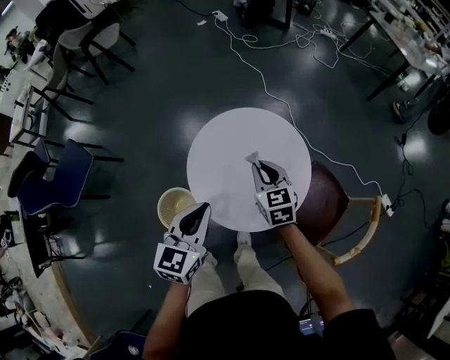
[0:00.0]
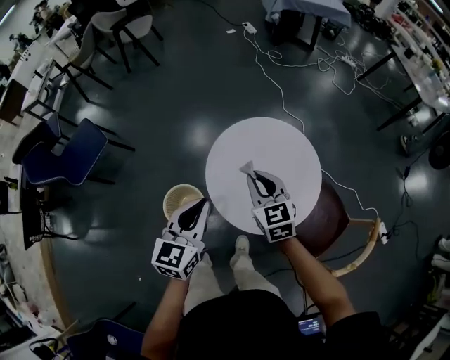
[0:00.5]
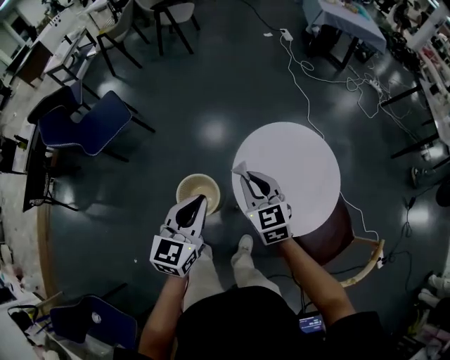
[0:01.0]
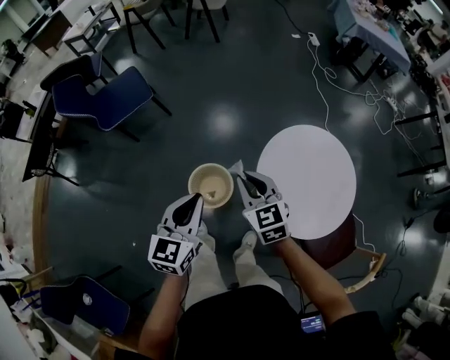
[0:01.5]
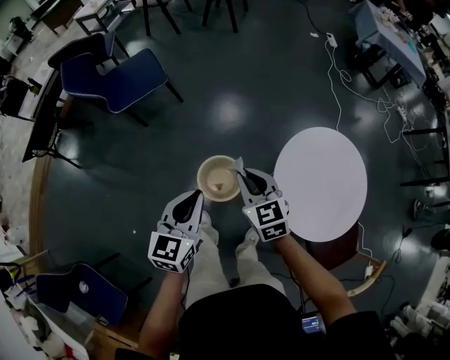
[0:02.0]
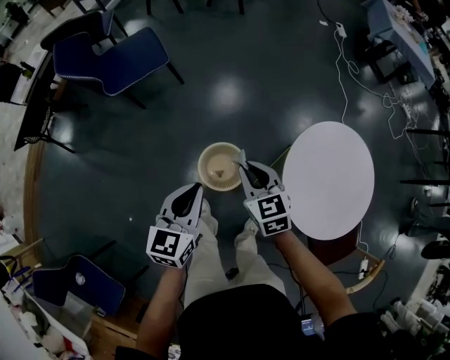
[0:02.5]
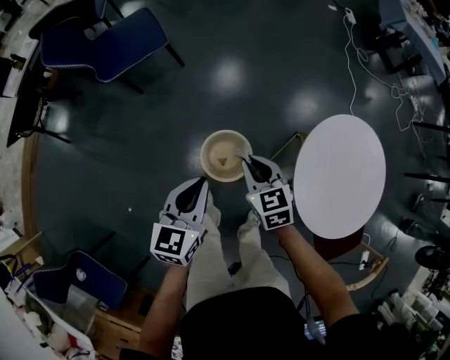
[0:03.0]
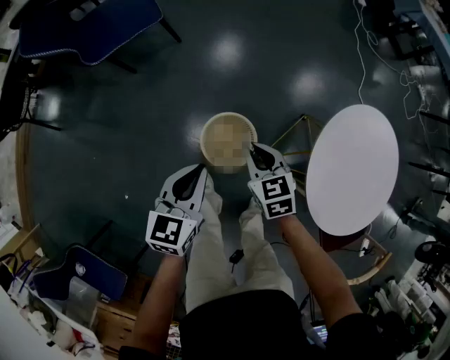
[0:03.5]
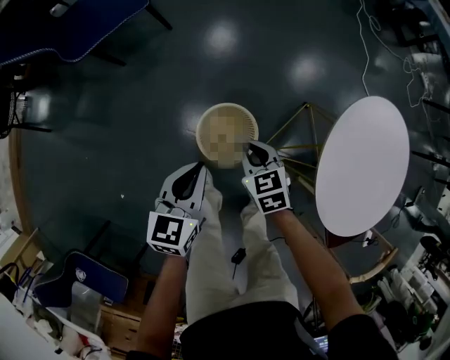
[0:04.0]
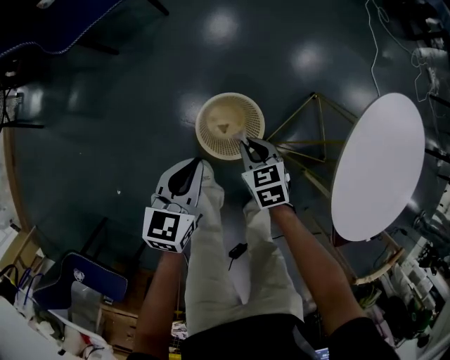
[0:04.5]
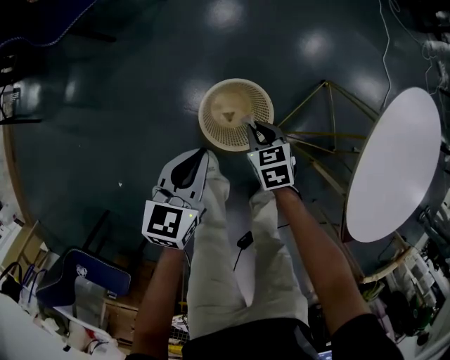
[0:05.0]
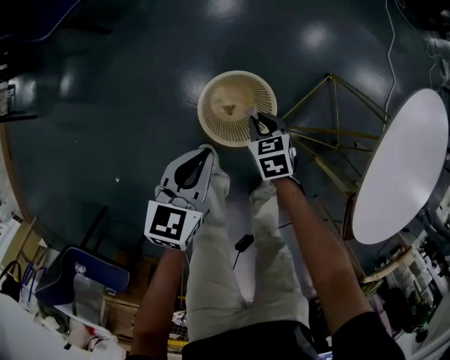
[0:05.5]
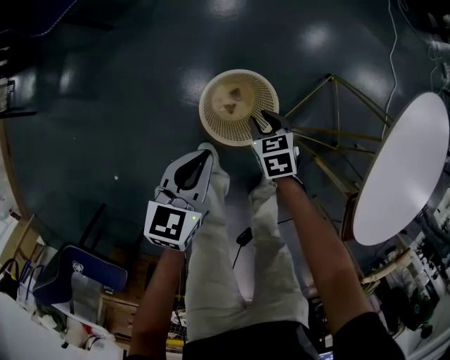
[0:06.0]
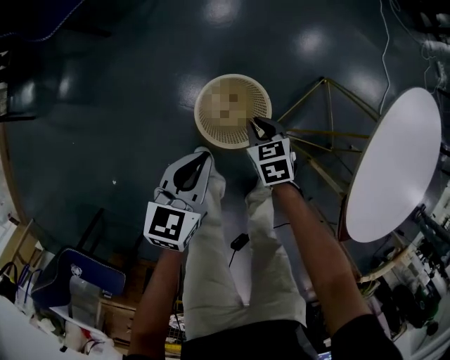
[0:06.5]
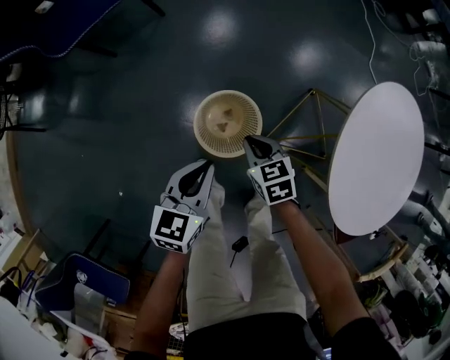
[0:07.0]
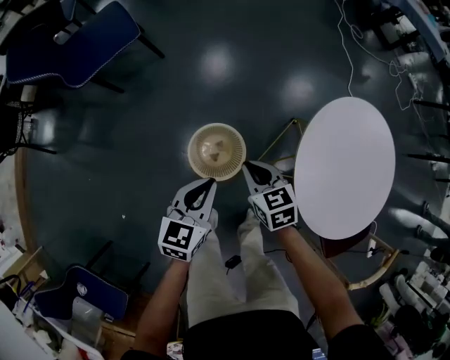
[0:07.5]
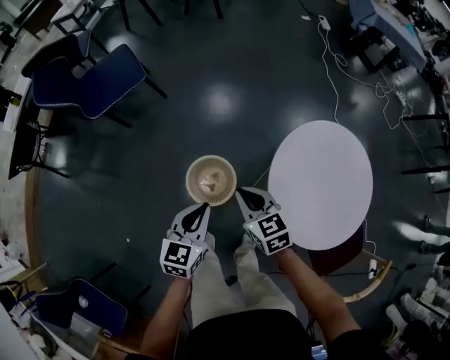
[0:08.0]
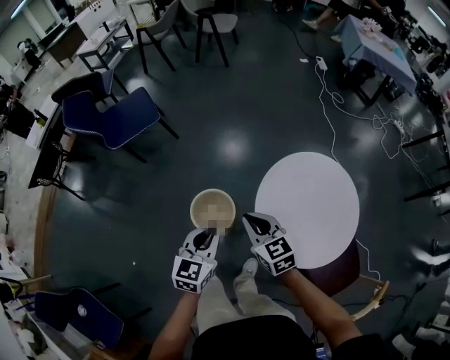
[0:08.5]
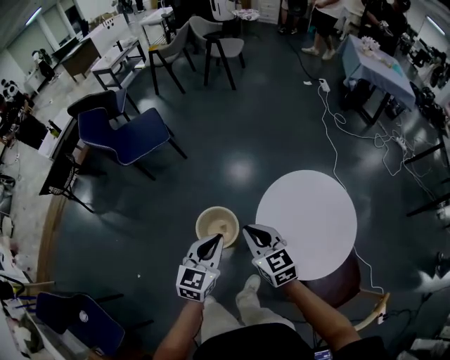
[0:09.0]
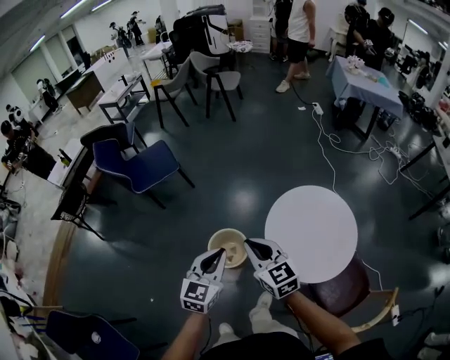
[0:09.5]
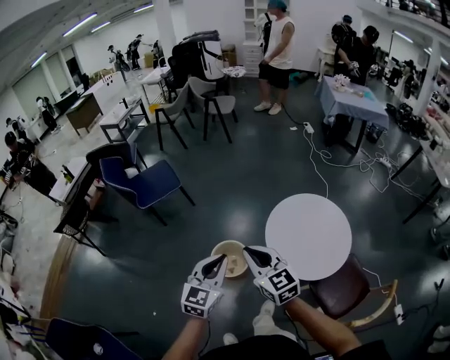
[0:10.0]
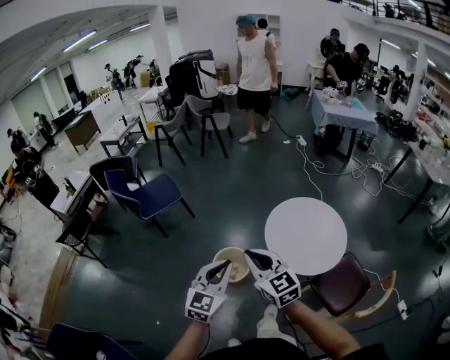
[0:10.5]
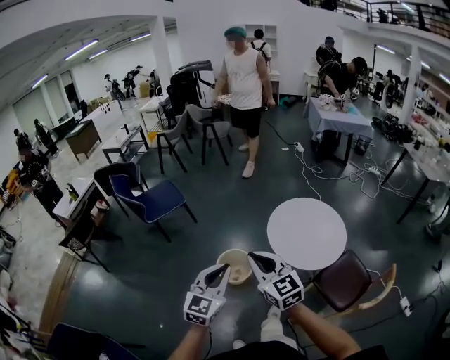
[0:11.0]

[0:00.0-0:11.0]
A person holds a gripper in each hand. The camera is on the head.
0:00.0 to 0:02.0: The left gripper changes place by approximately 40 cm, and swivels approximately 30 degrees; the right gripper ends up some 50 cm from where it was, and rotates roughly 40 degrees.
0:02.0 to 0:03.5: The left gripper shifts roughly 20 cm downward and forward. Meanwhile the right gripper travels downward by about 25 cm.
0:03.5 to 0:05.5: Both grippers travel together downward, approximately 30 cm.
0:05.5 to 0:07.5: The right gripper moves upward, some 30 cm. The left gripper goes some 20 cm upward and to the right.
0:07.5 to 0:09.0: The left gripper goes roughly 30 cm upward, to the right and backward; the right gripper travels upward by approximately 30 cm, and turns by roughly 20 degrees.
0:09.0 to 0:11.0: The grippers both shift backward, upward and to the left by roughly 40 cm. The left gripper changes its angle by about 20 degrees. The right gripper swivels roughly 20 degrees.

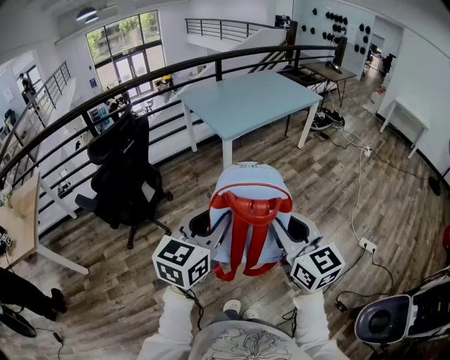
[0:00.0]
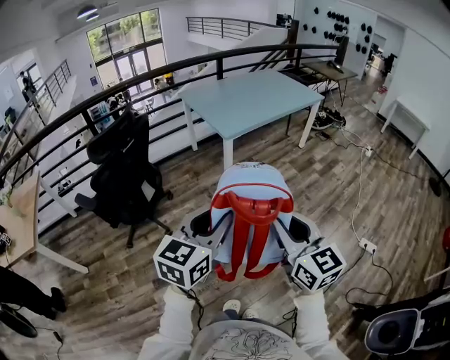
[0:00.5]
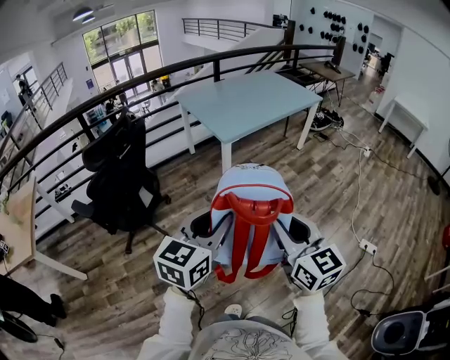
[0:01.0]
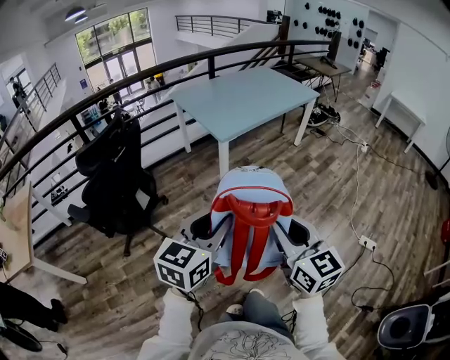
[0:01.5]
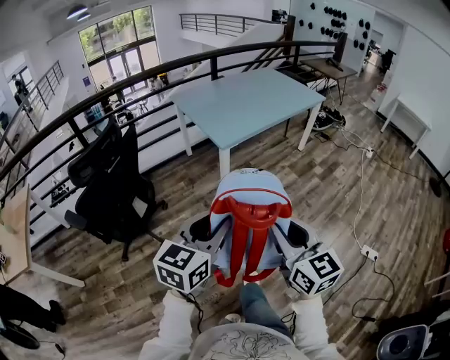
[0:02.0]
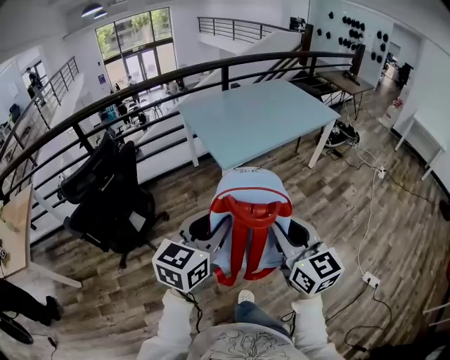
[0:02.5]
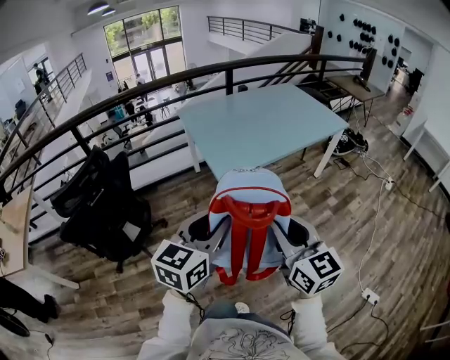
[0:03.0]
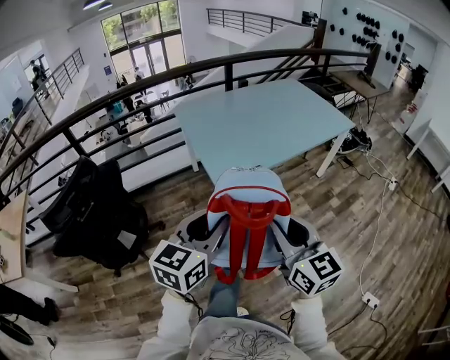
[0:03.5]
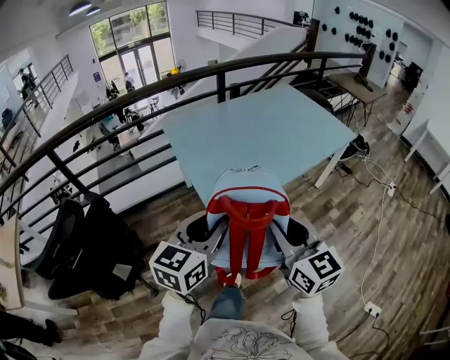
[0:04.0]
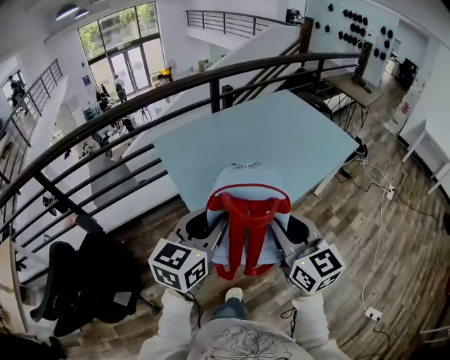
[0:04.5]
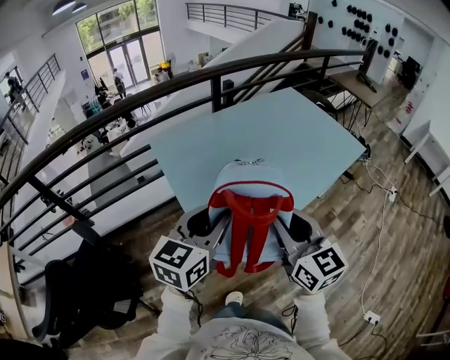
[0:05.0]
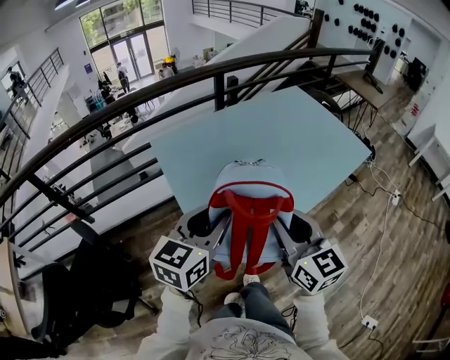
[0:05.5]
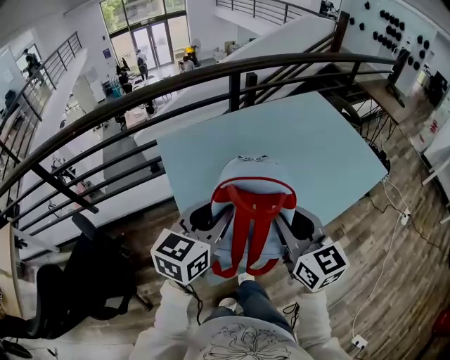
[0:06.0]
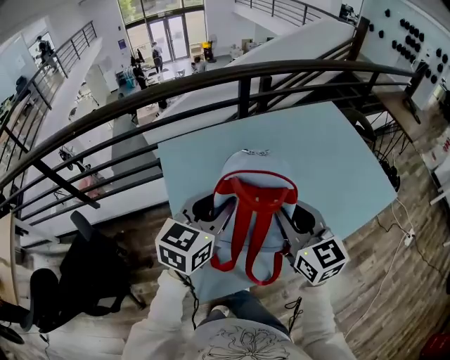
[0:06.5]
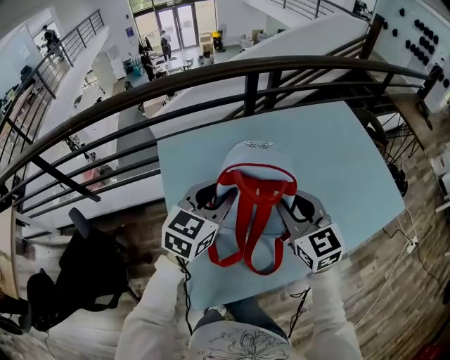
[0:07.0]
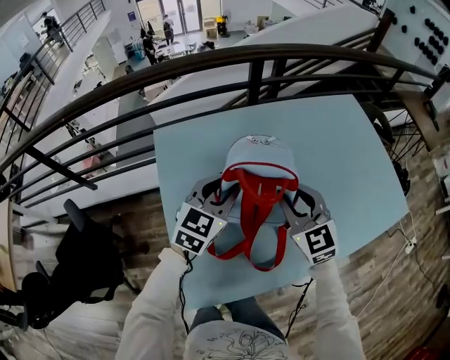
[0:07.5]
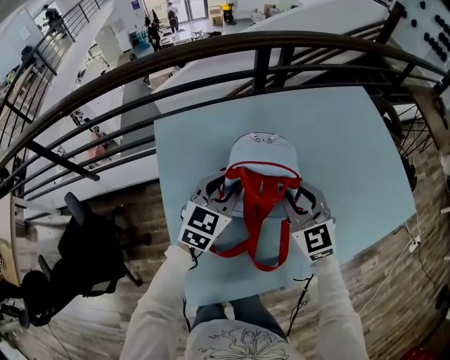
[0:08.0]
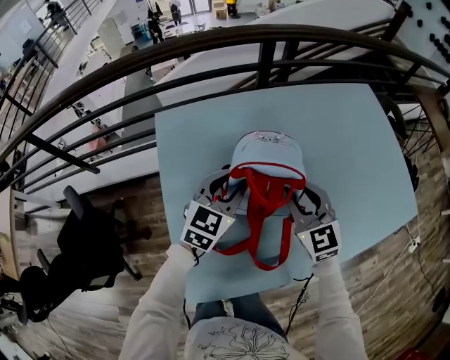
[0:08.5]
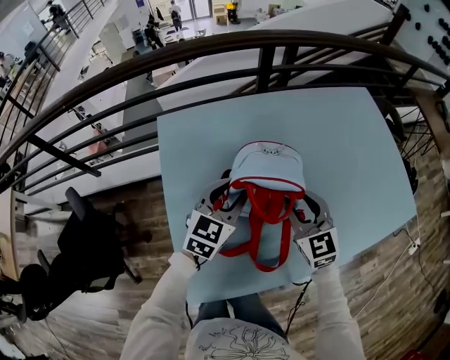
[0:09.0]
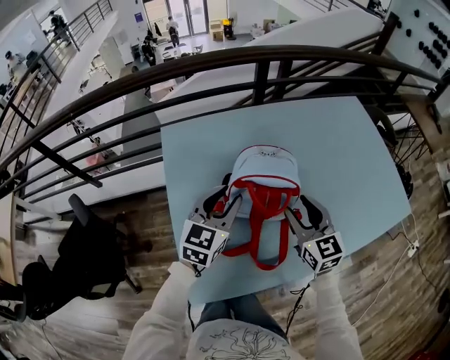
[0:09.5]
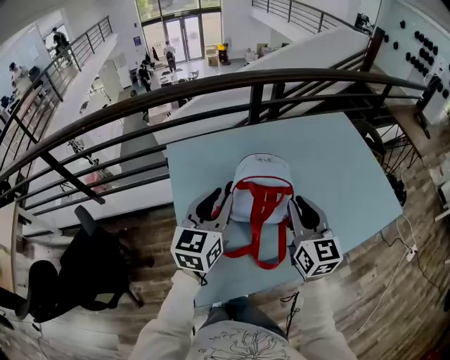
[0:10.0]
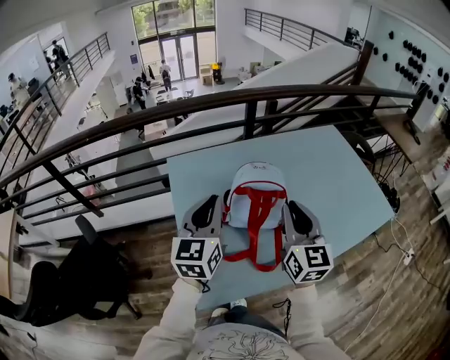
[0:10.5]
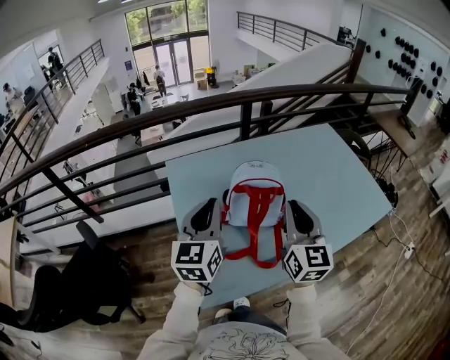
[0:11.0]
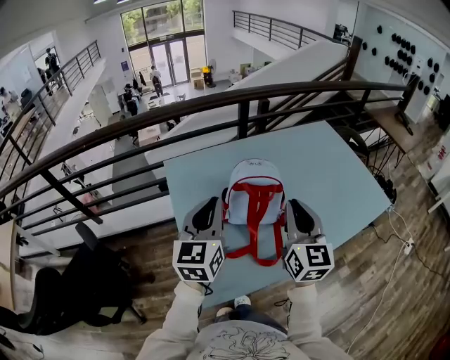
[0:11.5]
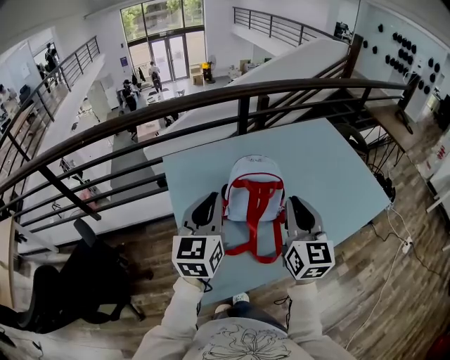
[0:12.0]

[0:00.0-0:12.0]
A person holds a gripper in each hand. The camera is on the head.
0:00.0 to 0:02.0: The grippers both shift forward by roughly 15 cm.
0:02.0 to 0:04.0: The two grippers travel together, forward, roughly 50 cm.
0:04.0 to 0:06.0: Both grippers move forward, some 40 cm.
0:06.0 to 0:08.0: The two grippers go some 30 cm forward and downward. The right gripper turns by approximately 30 degrees.
0:08.0 to 0:10.0: Both grippers travel together upward and backward, approximately 15 cm. The right gripper swivels about 30 degrees, and opens and closes again. The left gripper swivels approximately 20 degrees.
0:10.0 to 0:12.0: The grippers both shift backward and upward by roughly 10 cm. The left gripper closes its fingers.

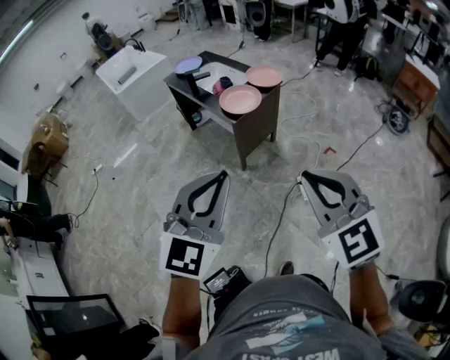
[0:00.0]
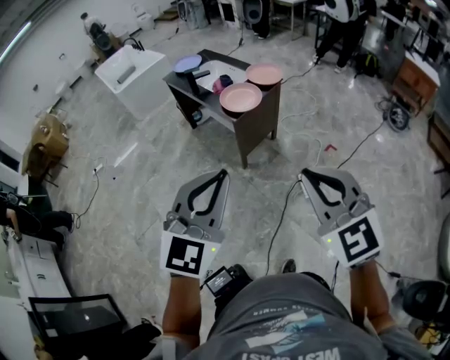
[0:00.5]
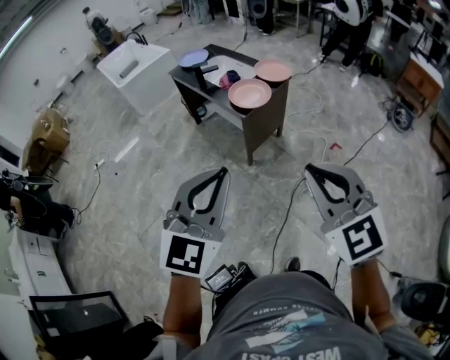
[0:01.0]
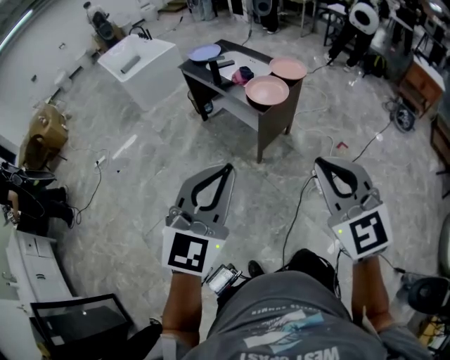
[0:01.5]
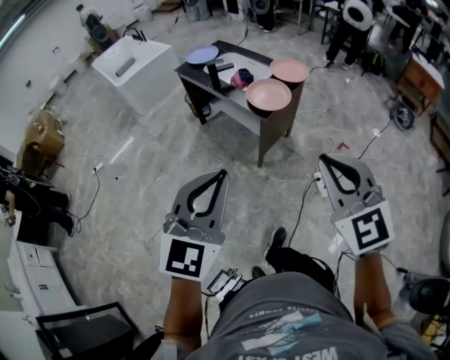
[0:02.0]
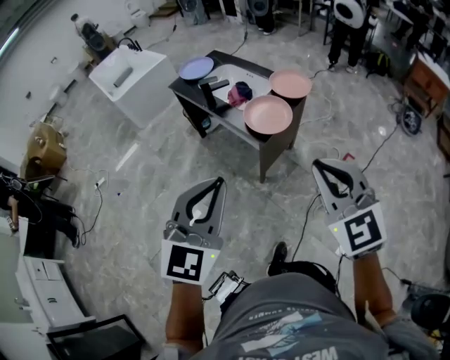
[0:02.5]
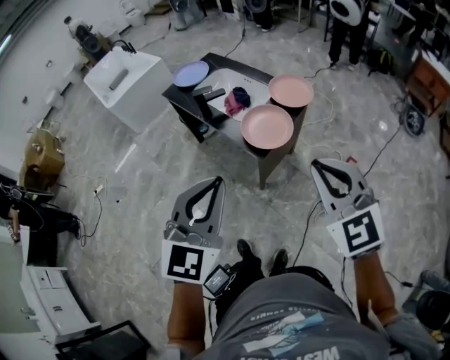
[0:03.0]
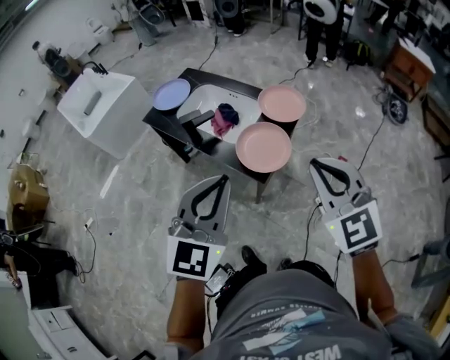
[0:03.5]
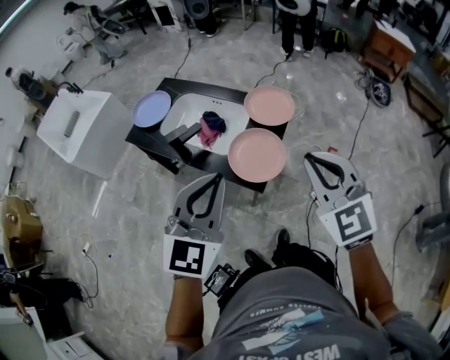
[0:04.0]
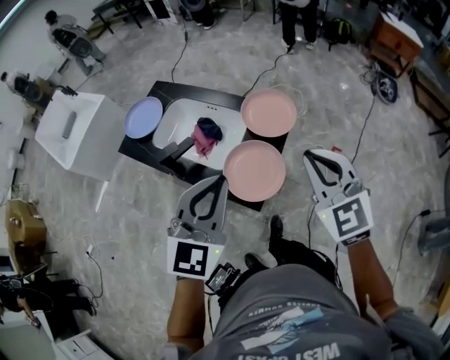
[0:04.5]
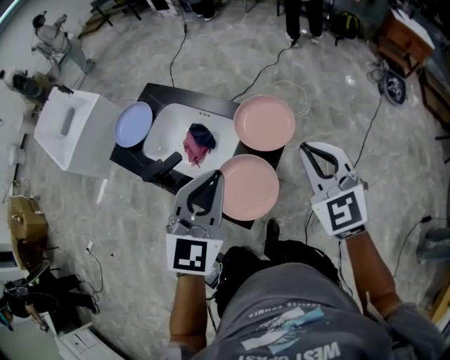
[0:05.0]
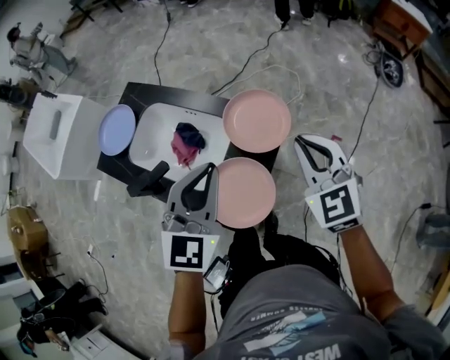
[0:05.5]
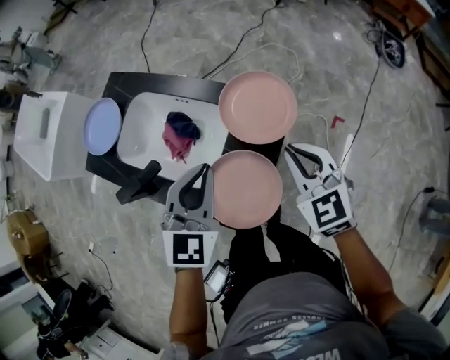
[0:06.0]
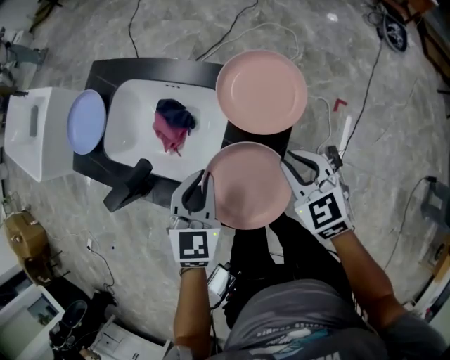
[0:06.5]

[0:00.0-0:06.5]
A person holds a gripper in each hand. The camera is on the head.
0:00.0 to 0:02.0: The left gripper shifts some 20 cm to the left; the right gripper travels to the left and forward by roughly 15 cm.
0:02.0 to 0:04.5: The pair of grippers is taken forward, some 50 cm.
0:04.5 to 0:06.5: Both grippers travel together downward and forward, roughly 30 cm. The left gripper turns by some 30 degrees, while the right gripper turns by some 20 degrees.
